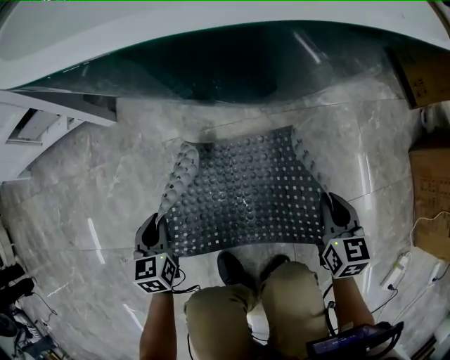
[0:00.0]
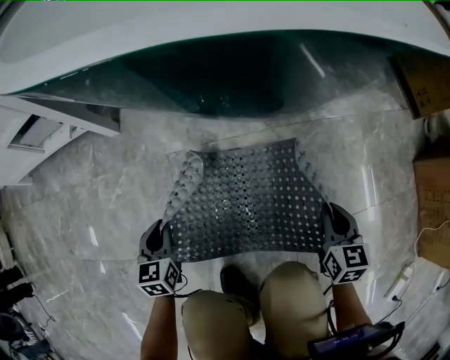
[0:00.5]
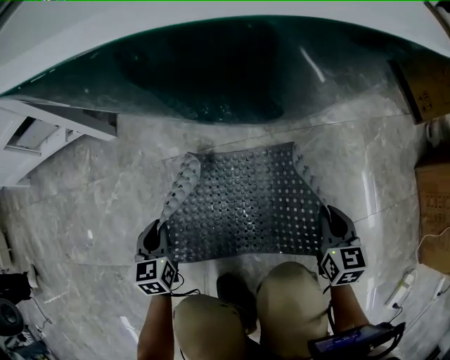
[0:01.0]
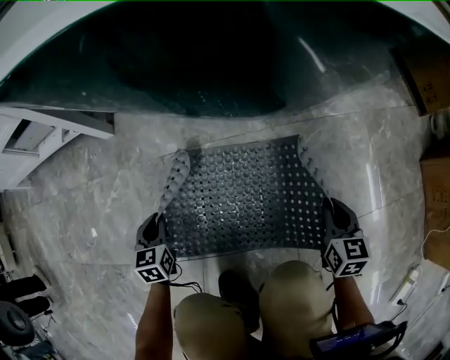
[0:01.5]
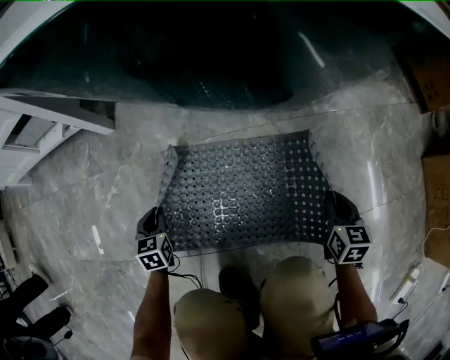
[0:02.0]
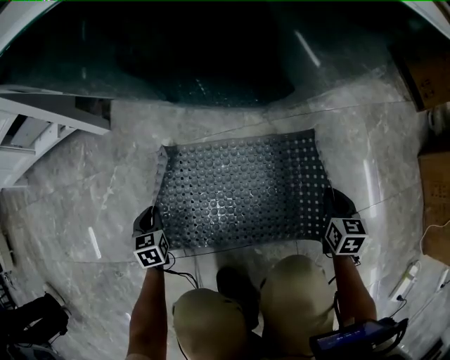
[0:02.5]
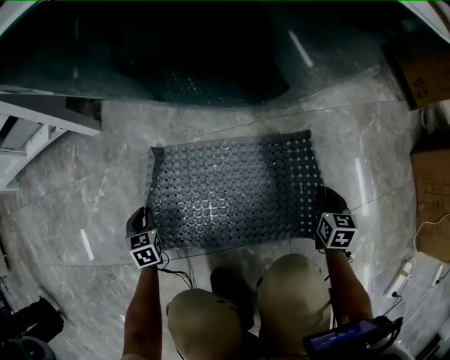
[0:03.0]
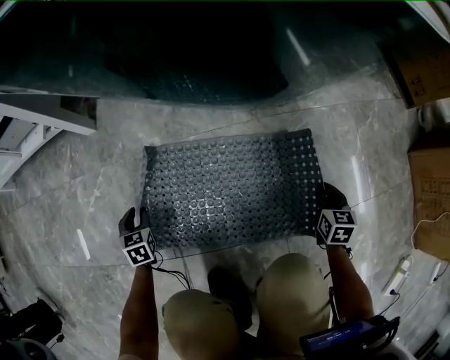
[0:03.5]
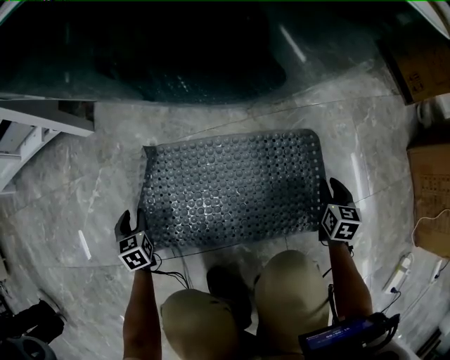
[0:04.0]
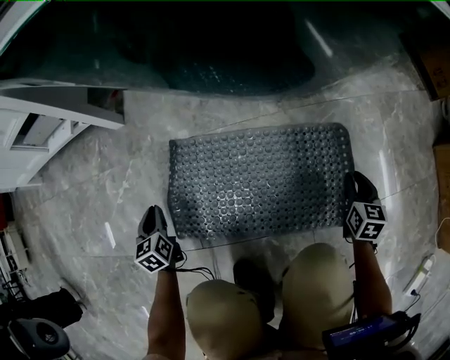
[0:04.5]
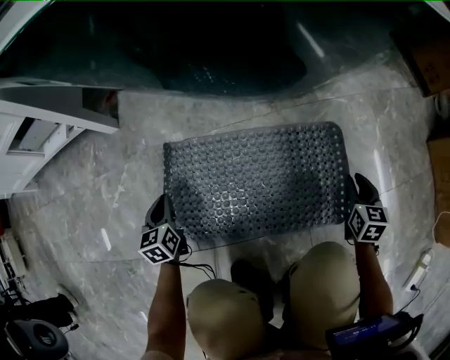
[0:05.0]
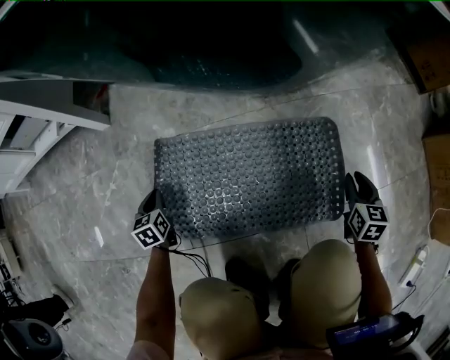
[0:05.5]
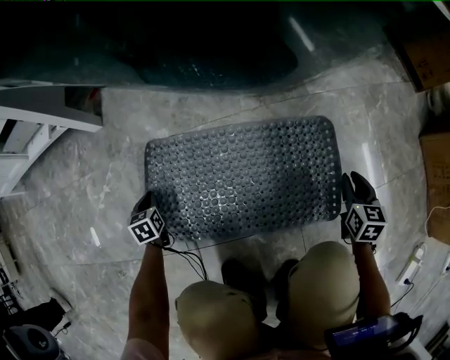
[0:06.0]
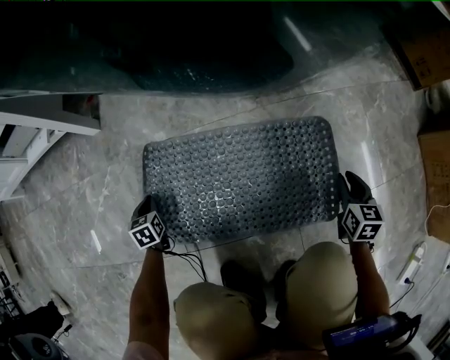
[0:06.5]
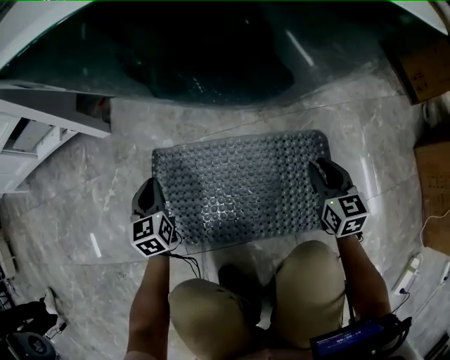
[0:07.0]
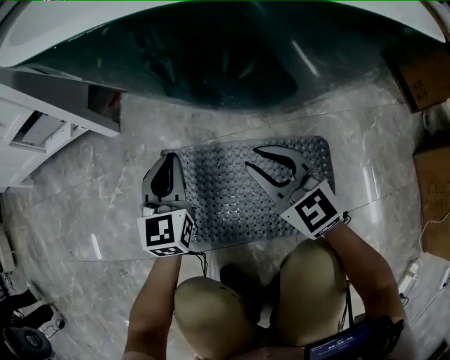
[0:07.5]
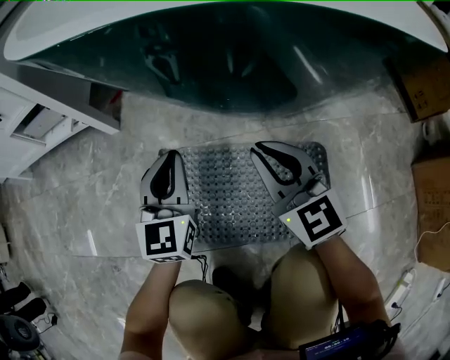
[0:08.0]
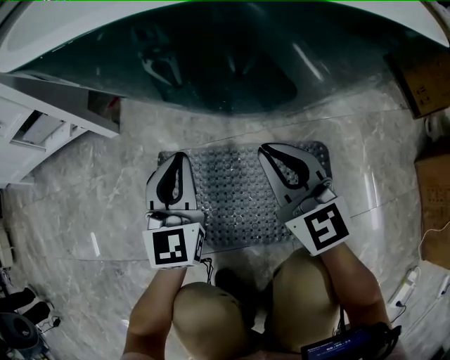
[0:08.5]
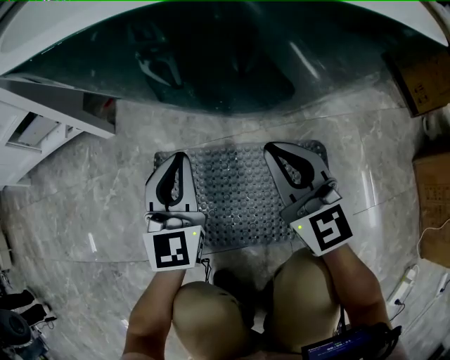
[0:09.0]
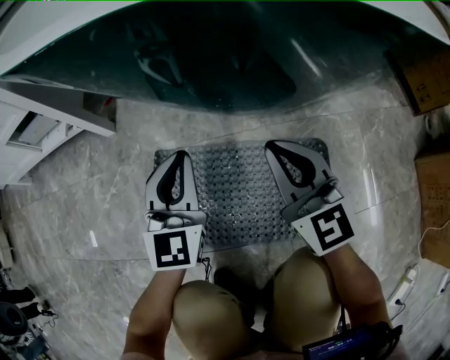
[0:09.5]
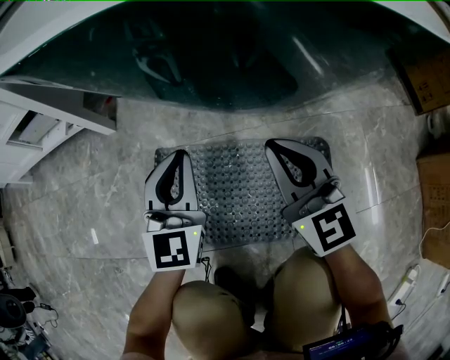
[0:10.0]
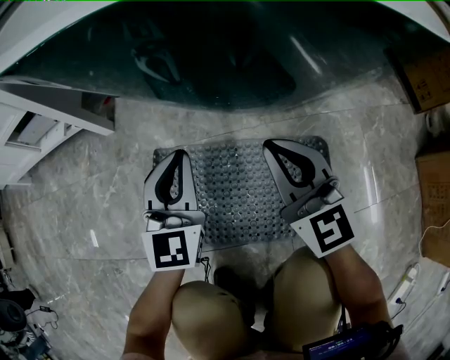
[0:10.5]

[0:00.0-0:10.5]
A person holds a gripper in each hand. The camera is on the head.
0:00.0 to 0:02.0: Both grippers move downward, roughly 15 cm.
0:02.0 to 0:04.0: The left gripper opens, while the right gripper is displaced to the right and downward by about 10 cm, and opens its fingers.
0:04.0 to 0:06.5: The left gripper travels downward by some 5 cm, and closes up.
0:06.5 to 0:08.5: The left gripper heads upward and to the right, covering about 40 cm, and angles its fingers upward, by roughly 50 degrees, while the right gripper is displaced upward, to the left and forward by approximately 35 cm, and angles its fingers upward, by some 40 degrees.
0:08.5 to 0:10.5: The grippers move only a little.

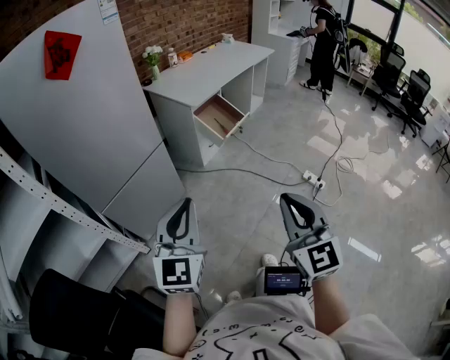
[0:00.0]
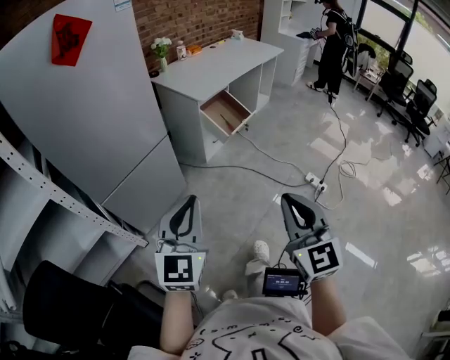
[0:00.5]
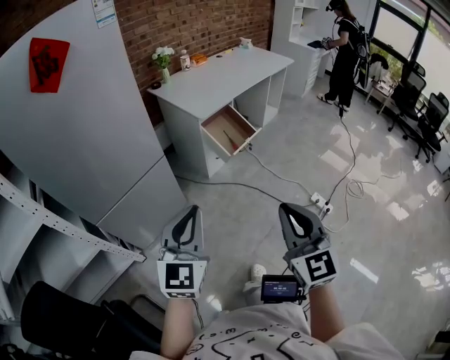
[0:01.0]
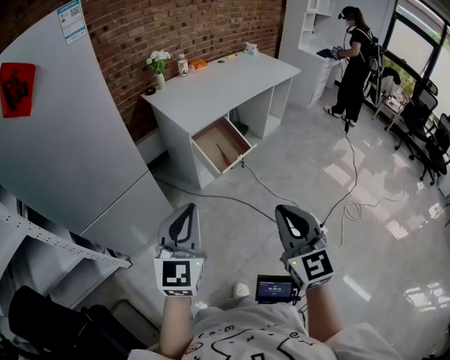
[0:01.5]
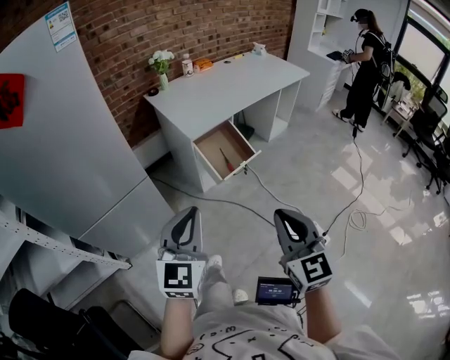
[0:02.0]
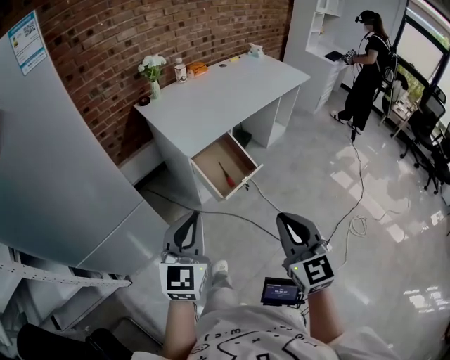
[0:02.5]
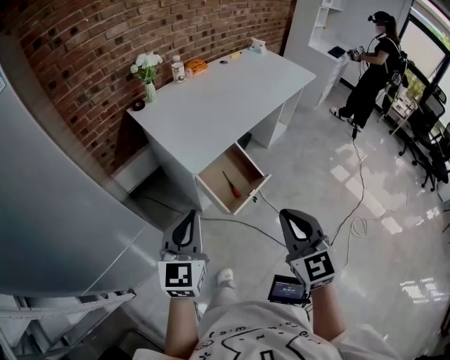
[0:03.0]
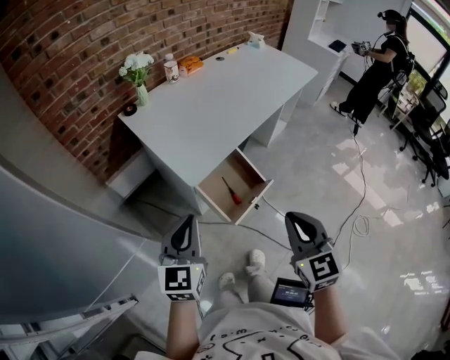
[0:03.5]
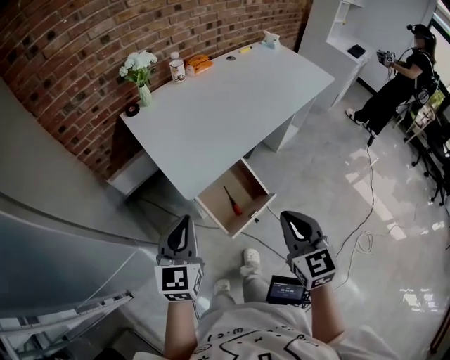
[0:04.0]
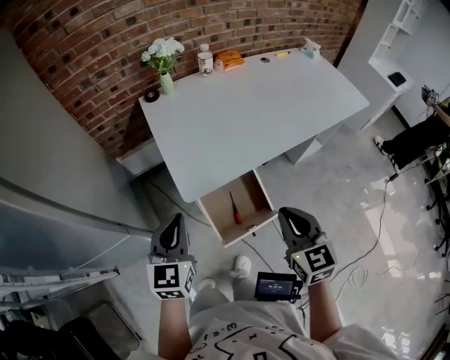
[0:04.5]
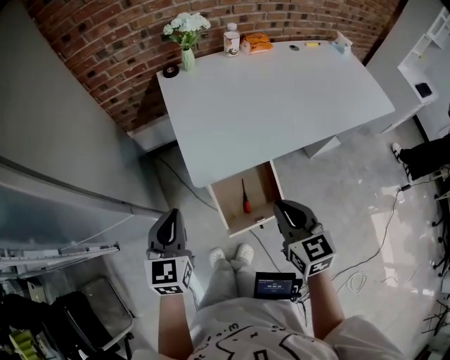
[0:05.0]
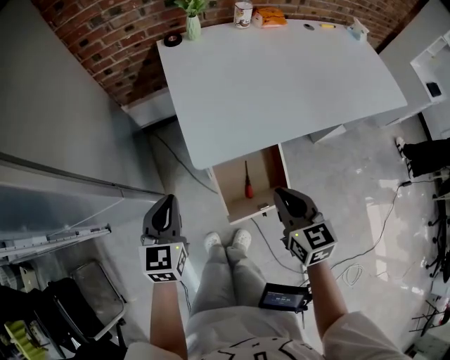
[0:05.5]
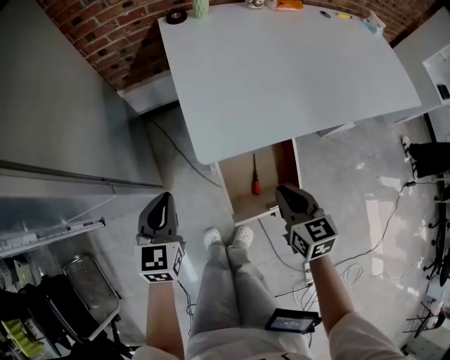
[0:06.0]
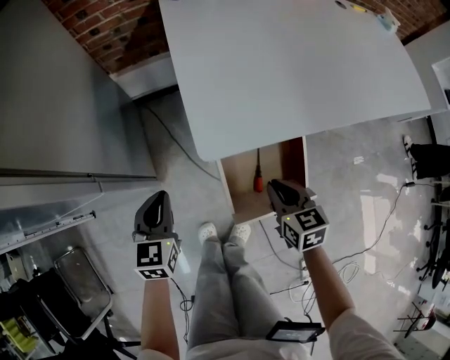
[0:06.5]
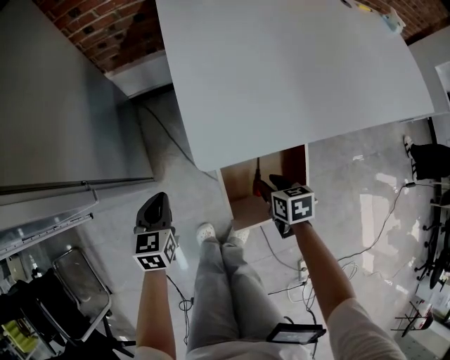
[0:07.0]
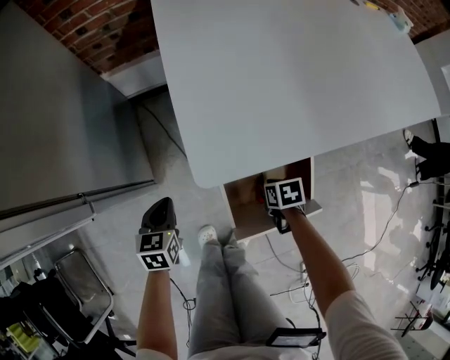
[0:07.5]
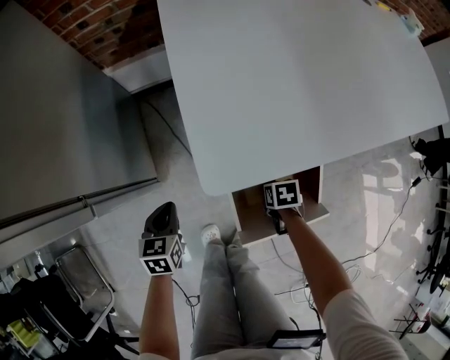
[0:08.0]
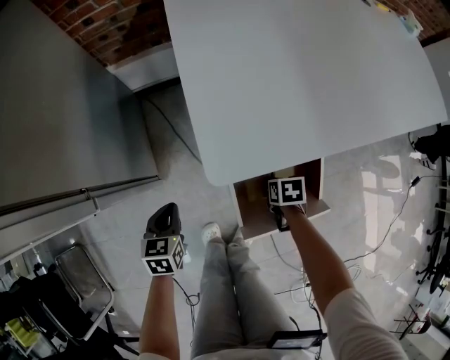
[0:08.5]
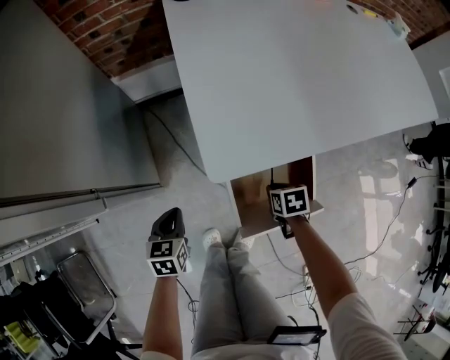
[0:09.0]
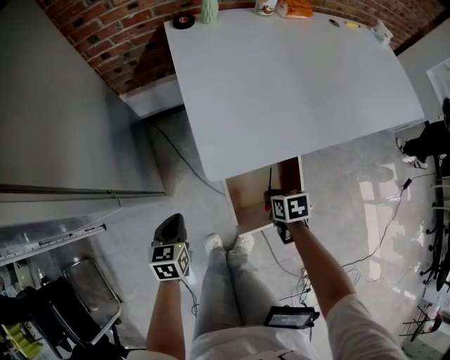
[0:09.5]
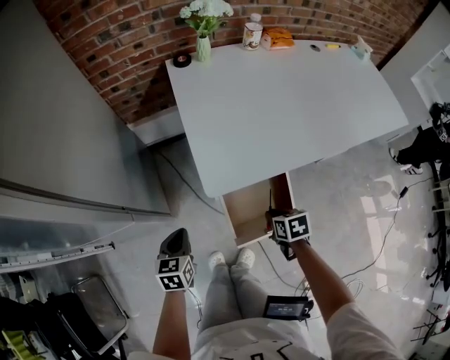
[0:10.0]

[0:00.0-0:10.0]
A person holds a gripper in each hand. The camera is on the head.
0:00.0 to 0:02.0: Both grippers travel together forward and to the right, about 35 cm.
0:02.0 to 0:04.0: Both grippers travel together forward, approximately 40 cm.
0:04.0 to 0:06.0: Both grippers travel together downward, approximately 20 cm. The left gripper changes its angle by about 30 degrees. Meanwhile the right gripper swivels about 30 degrees.
0:06.0 to 0:08.0: Both grippers move downward, some 25 cm. The left gripper swivels roughly 30 degrees; the right gripper tilts its fingers some 40 degrees downward.
0:08.0 to 0:10.0: Both grippers travel together upward, roughly 20 cm.

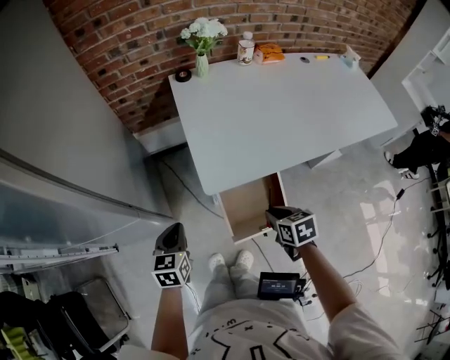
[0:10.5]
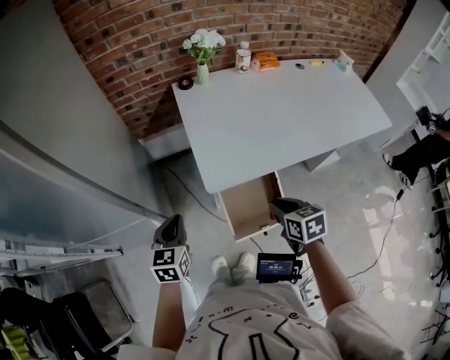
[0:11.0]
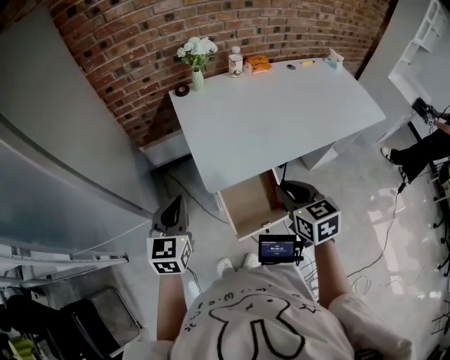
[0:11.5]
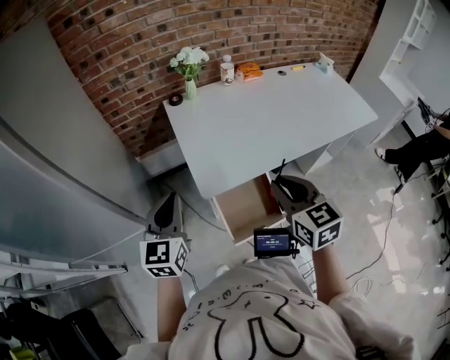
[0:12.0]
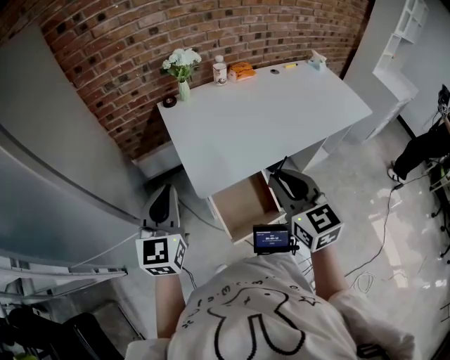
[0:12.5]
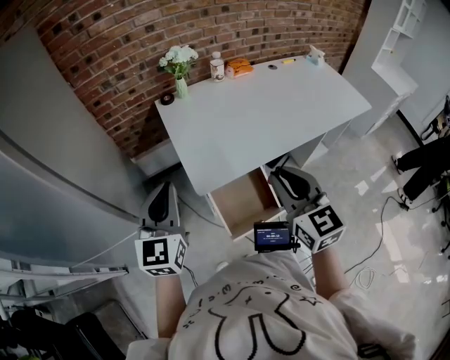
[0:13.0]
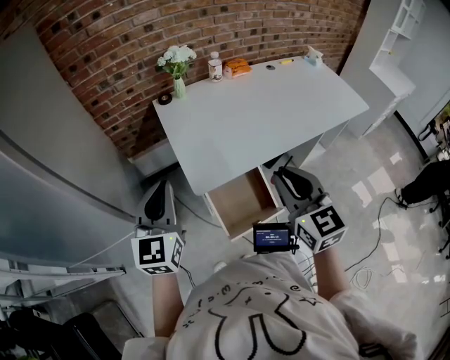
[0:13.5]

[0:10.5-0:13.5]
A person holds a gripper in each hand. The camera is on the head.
0:10.5 to 0:12.0: Both grippers move upward, some 25 cm. The right gripper tips its fingers upward by approximately 30 degrees, while the left gripper rotates some 30 degrees.
0:12.0 to 0:13.5: The left gripper changes place by about 5 cm.

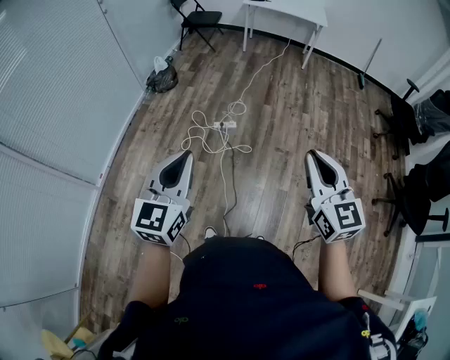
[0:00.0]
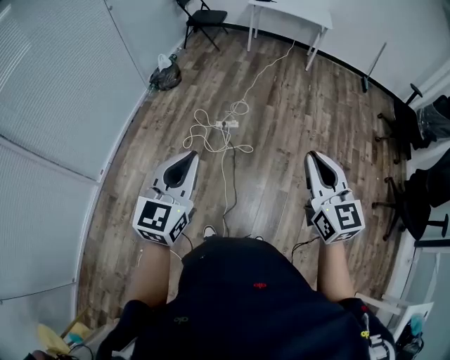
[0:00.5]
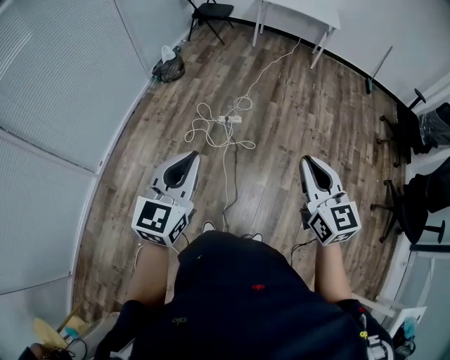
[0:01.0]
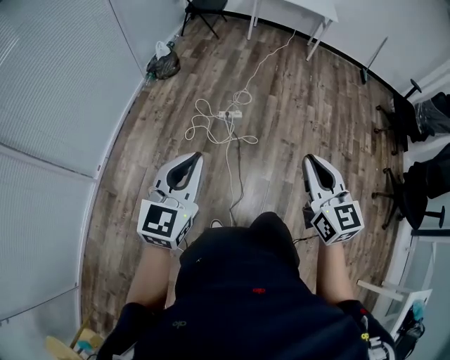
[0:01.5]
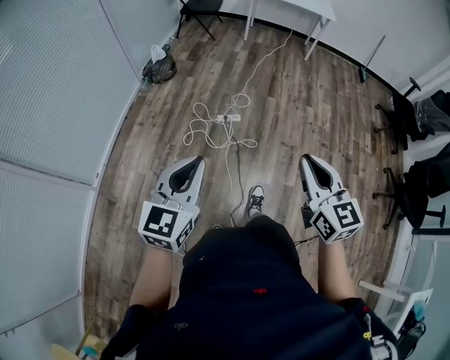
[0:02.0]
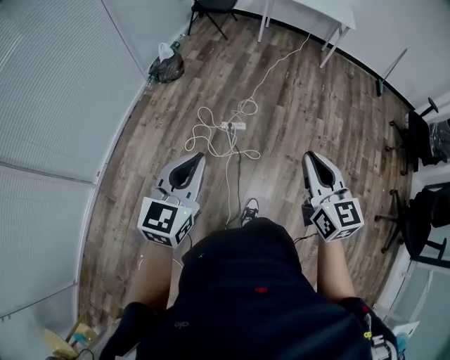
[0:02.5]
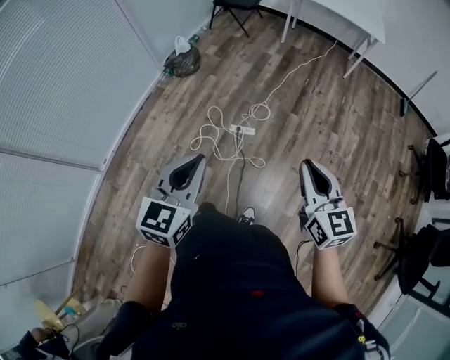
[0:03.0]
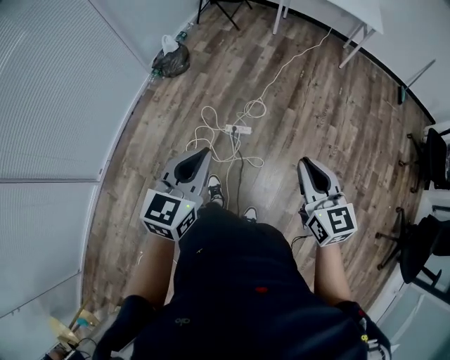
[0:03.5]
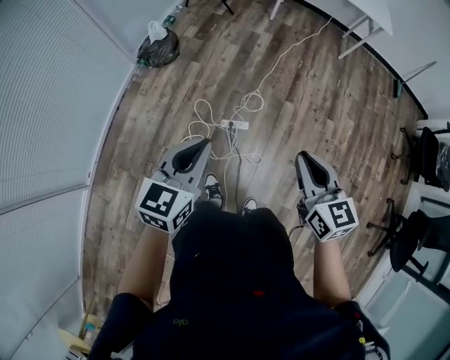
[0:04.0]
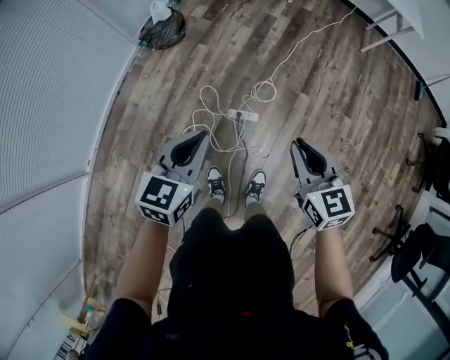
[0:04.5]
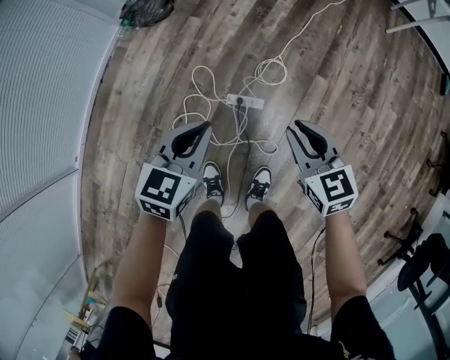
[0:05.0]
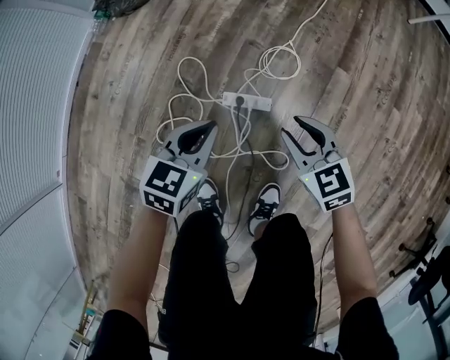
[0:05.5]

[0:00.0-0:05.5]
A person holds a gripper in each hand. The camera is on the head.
0:00.0 to 0:02.0: The grippers both shift to the left, forward and downward by approximately 15 cm.
0:02.0 to 0:03.5: The grippers both shift forward by roughly 35 cm.
0:03.5 to 0:05.5: The grippers both shift downward and forward by approximately 70 cm. The right gripper turns by some 30 degrees, and opens. The left gripper turns by about 20 degrees.
